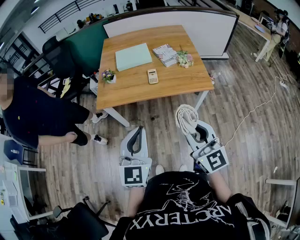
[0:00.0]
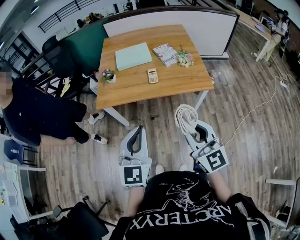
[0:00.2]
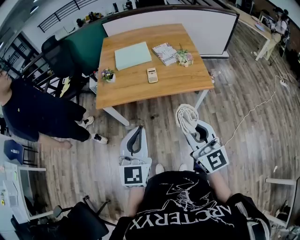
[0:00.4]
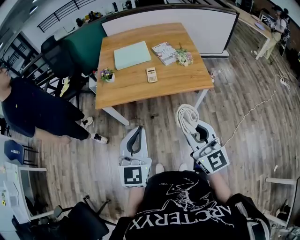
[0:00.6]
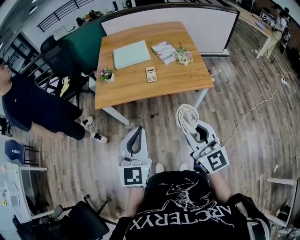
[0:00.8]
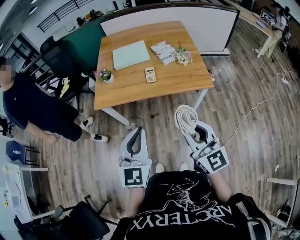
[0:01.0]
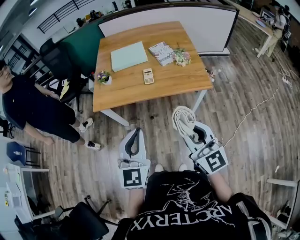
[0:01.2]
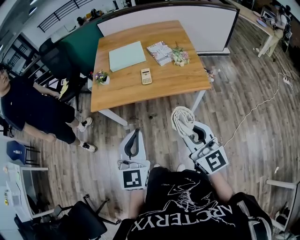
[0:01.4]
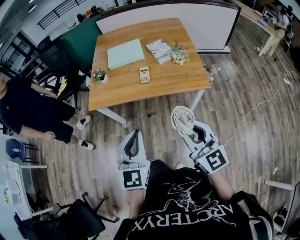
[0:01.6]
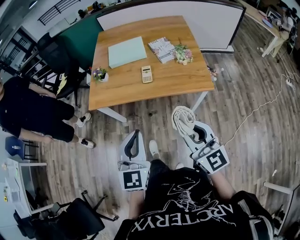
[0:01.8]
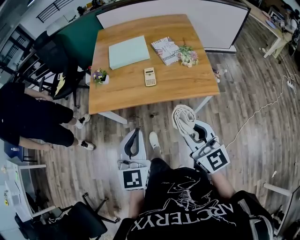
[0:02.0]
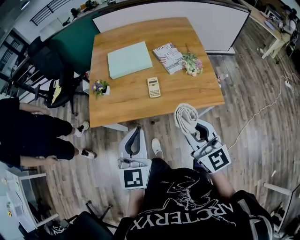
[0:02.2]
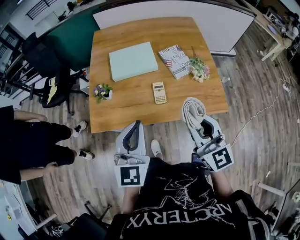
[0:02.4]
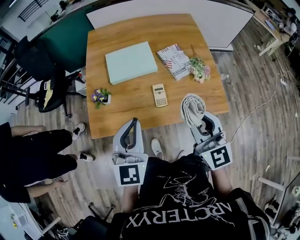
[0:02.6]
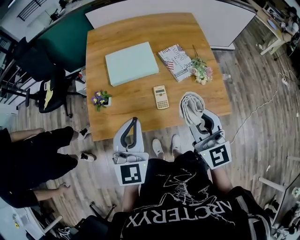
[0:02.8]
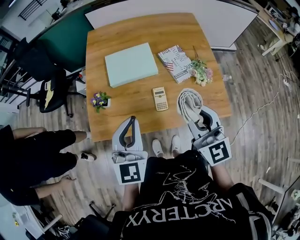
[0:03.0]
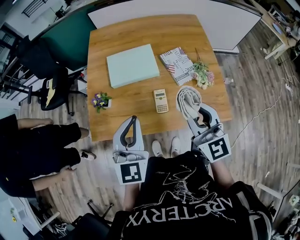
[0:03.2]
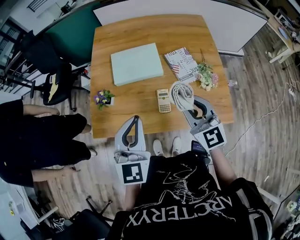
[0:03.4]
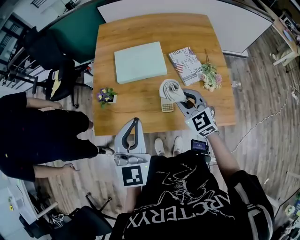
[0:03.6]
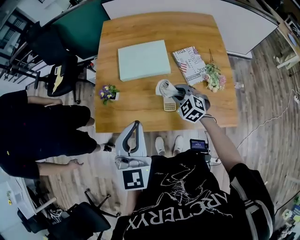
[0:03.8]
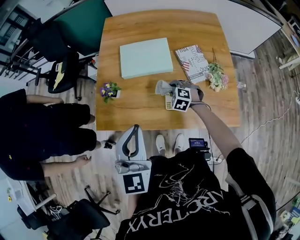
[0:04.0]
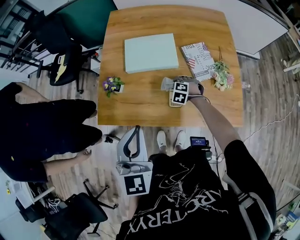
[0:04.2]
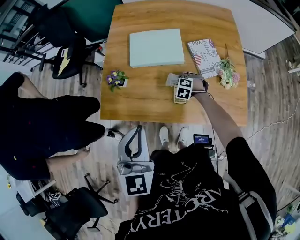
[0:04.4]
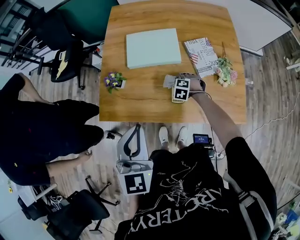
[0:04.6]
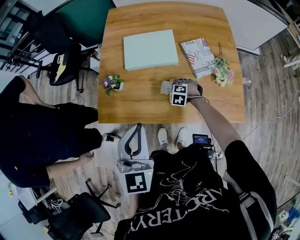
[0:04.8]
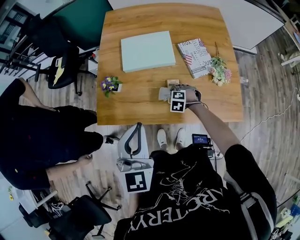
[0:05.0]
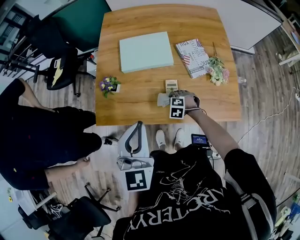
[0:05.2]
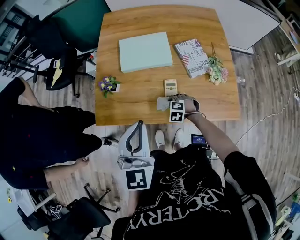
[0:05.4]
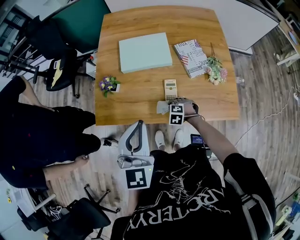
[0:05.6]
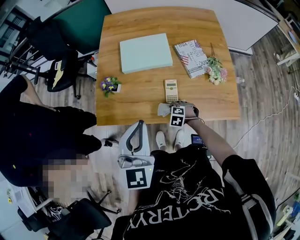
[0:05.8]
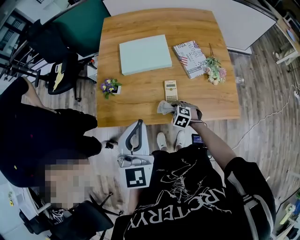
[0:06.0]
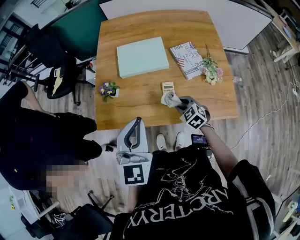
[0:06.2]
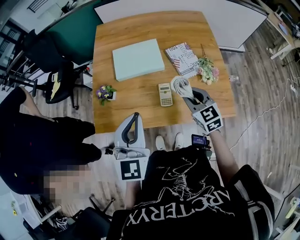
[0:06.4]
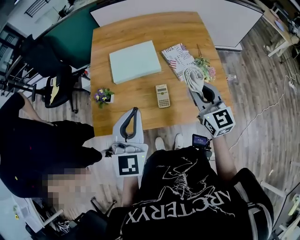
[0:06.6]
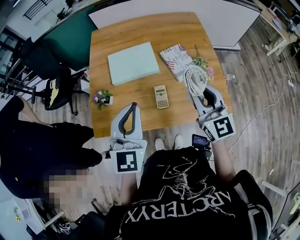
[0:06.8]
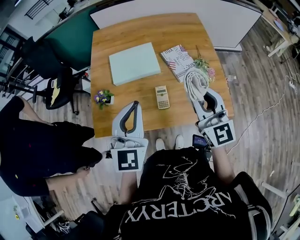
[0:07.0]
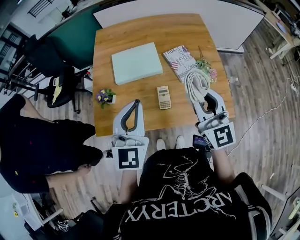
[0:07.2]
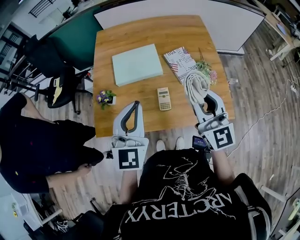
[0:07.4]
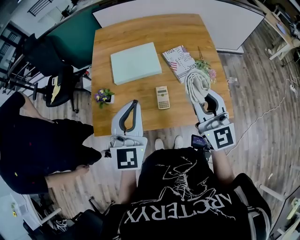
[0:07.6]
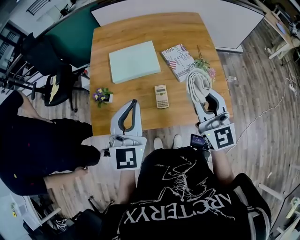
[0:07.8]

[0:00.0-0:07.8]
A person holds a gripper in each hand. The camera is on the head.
0:00.0 to 0:01.6: The grippers both shift to the right by some 5 cm.
0:01.6 to 0:03.2: The grippers both shift forward by roughly 40 cm.
0:03.2 to 0:04.6: The right gripper goes approximately 40 cm downward and forward, and tilts its fingers some 70 degrees downward, while the left gripper changes place by about 5 cm.
0:04.6 to 0:06.2: The right gripper shifts about 20 cm backward and upward, and changes its angle by roughly 40 degrees.
0:06.2 to 0:07.8: The left gripper heads forward, covering about 5 cm; the right gripper moves upward, roughly 30 cm, and tips its fingers upward by about 50 degrees.

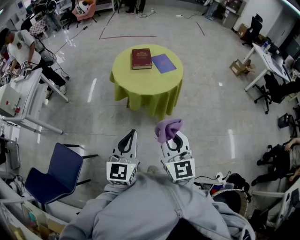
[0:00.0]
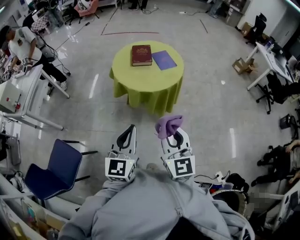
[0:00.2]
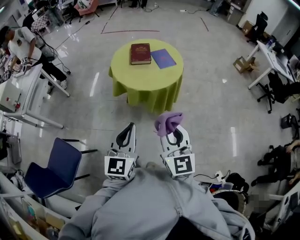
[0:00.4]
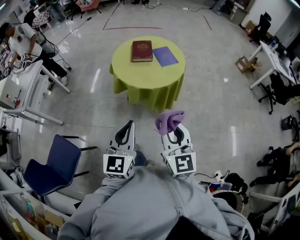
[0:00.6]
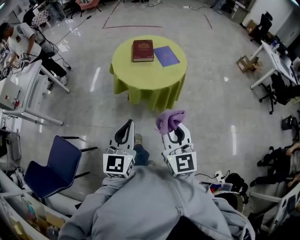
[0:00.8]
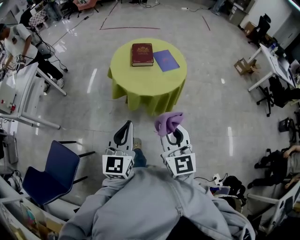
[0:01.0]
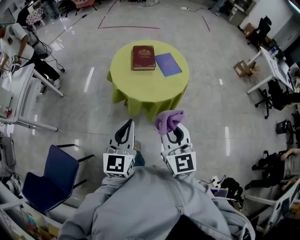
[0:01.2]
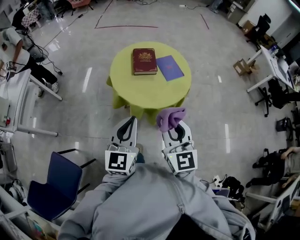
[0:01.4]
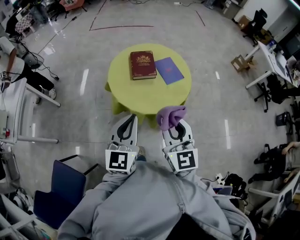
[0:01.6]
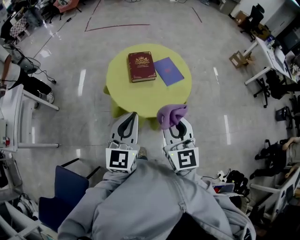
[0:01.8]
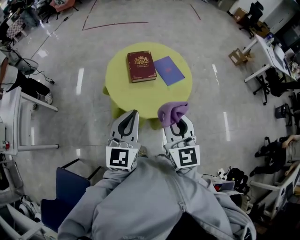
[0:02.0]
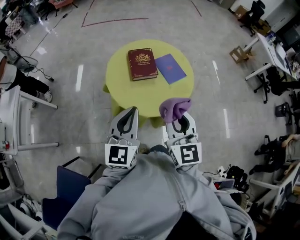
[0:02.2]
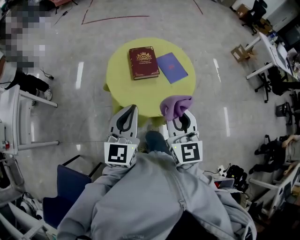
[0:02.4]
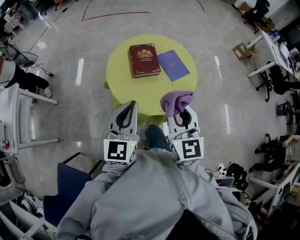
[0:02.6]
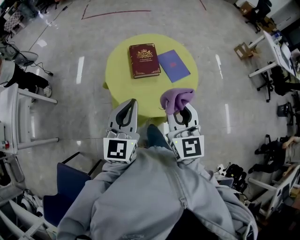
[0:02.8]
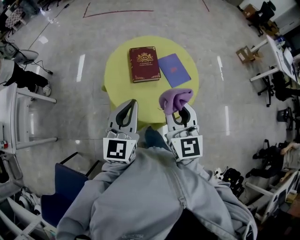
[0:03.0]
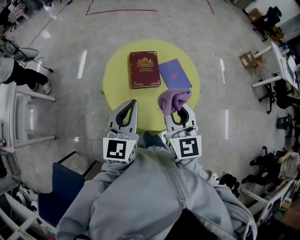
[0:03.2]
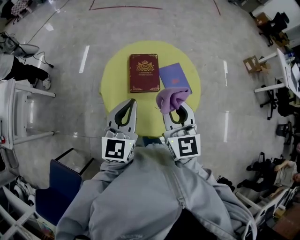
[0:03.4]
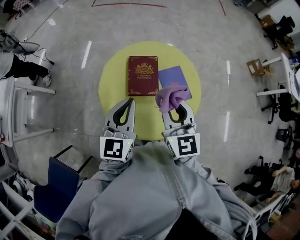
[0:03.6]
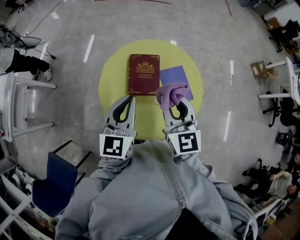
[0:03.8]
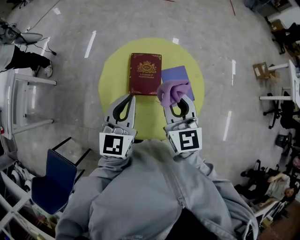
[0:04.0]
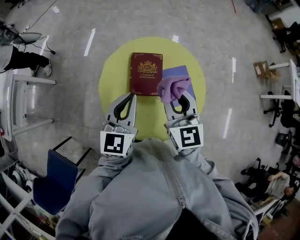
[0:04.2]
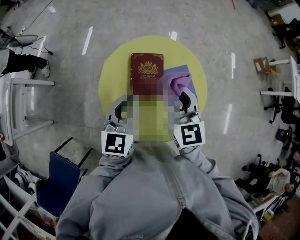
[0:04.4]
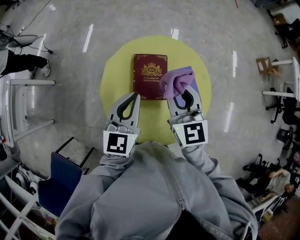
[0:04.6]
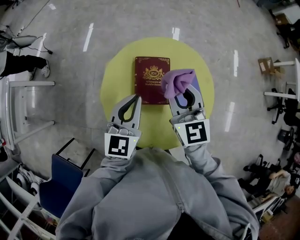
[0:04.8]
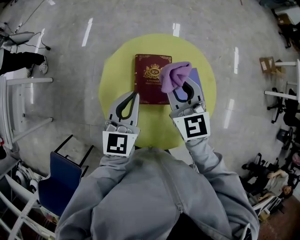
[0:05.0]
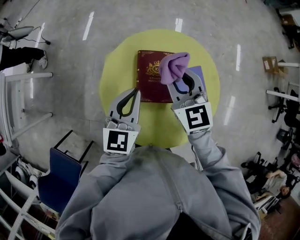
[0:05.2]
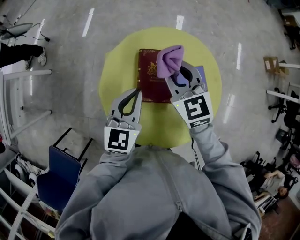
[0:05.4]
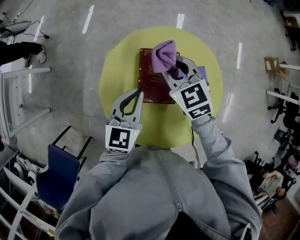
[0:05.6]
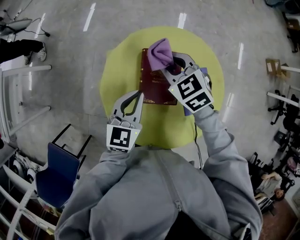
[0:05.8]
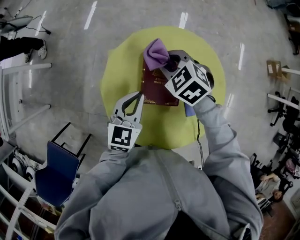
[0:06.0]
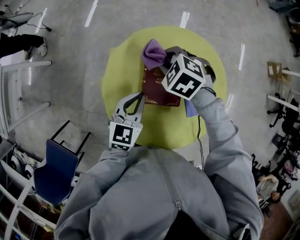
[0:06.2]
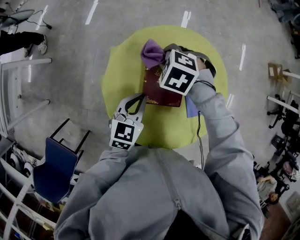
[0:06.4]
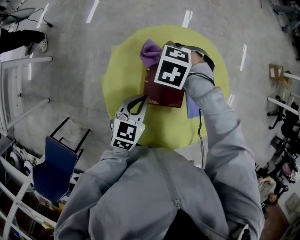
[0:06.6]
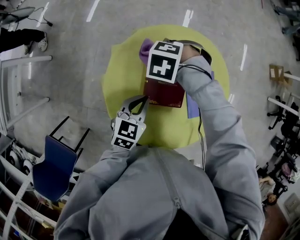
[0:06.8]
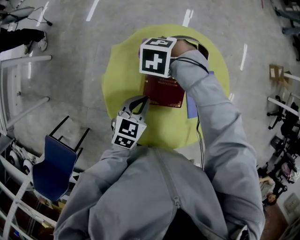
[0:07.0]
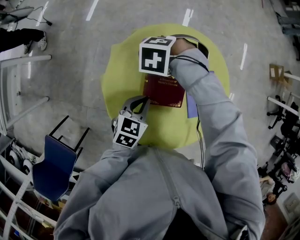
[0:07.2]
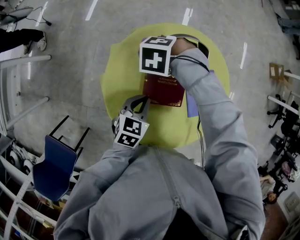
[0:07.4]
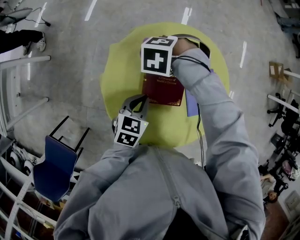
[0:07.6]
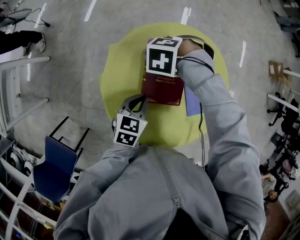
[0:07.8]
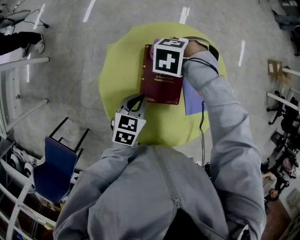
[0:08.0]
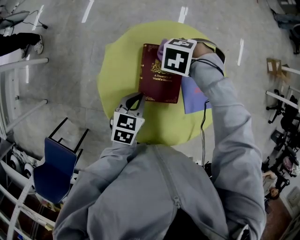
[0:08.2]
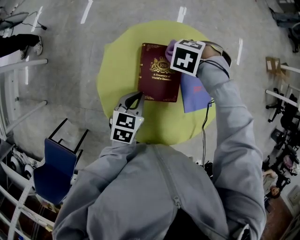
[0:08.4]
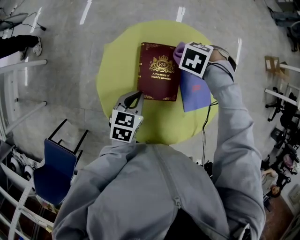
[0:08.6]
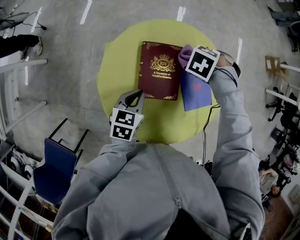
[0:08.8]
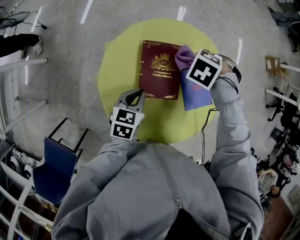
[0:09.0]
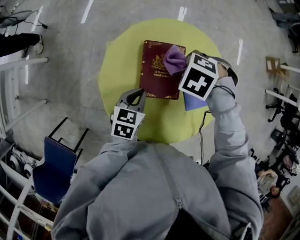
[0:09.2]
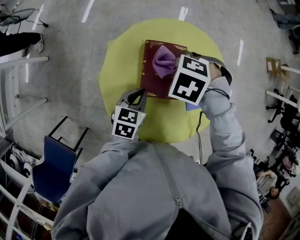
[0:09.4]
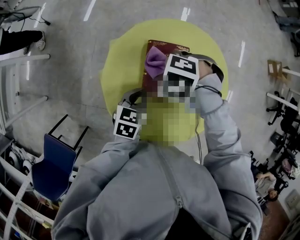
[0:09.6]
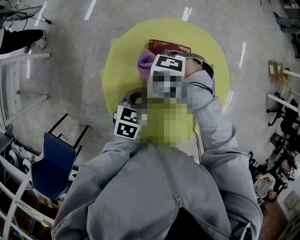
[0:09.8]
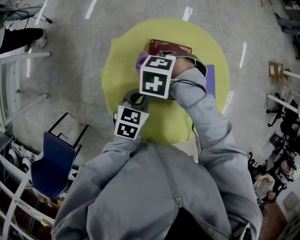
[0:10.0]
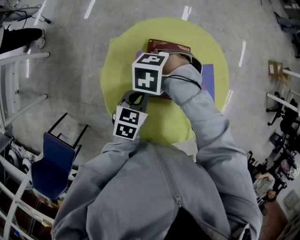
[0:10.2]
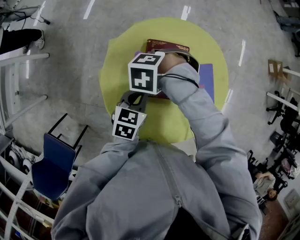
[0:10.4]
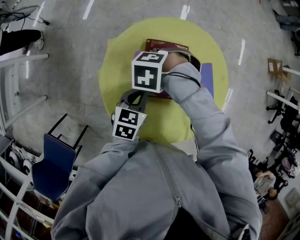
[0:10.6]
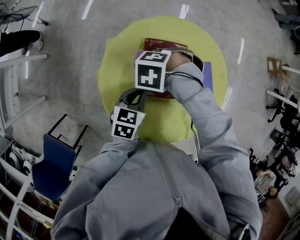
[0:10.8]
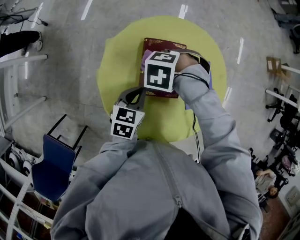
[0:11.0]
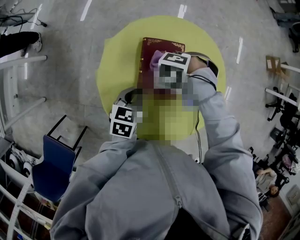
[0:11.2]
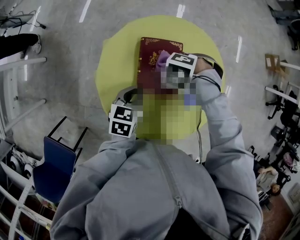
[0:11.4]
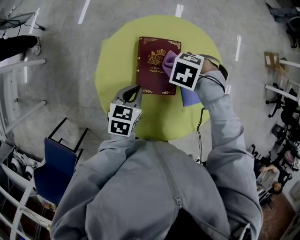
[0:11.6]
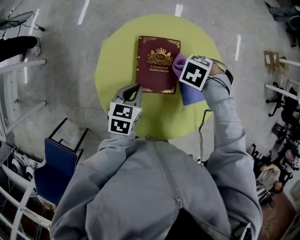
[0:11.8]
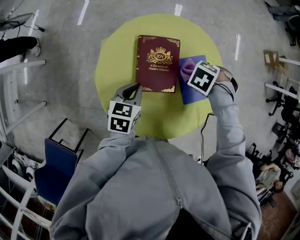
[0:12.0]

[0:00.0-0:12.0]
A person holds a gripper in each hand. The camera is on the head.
0:00.0 to 0:01.6: Both grippers move forward, approximately 30 cm.
0:01.6 to 0:03.0: The grippers both shift forward by roughly 20 cm.
0:03.0 to 0:04.4: Both grippers move forward, roughly 25 cm.
0:04.4 to 0:06.0: The left gripper shifts roughly 20 cm downward and forward; the right gripper shifts some 25 cm downward, forward and to the left, and tips its fingers downward by roughly 40 degrees.
0:06.0 to 0:07.6: Both grippers move downward, some 5 cm. The left gripper turns by about 20 degrees, while the right gripper tips its fingers downward by roughly 30 degrees.
0:07.6 to 0:09.0: The right gripper ends up about 15 cm from where it was.
0:09.0 to 0:10.4: The right gripper changes place by approximately 15 cm.
0:10.4 to 0:12.0: The right gripper ends up roughly 20 cm from where it was, and swivels some 30 degrees.

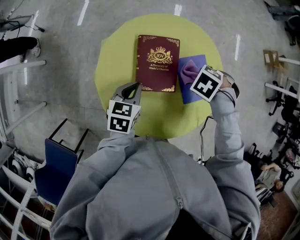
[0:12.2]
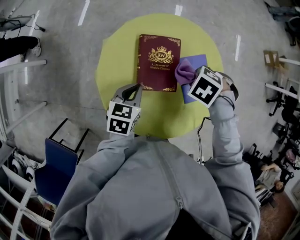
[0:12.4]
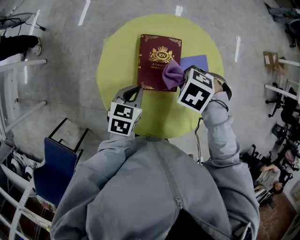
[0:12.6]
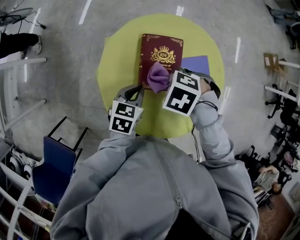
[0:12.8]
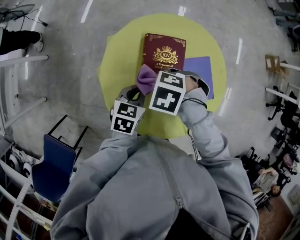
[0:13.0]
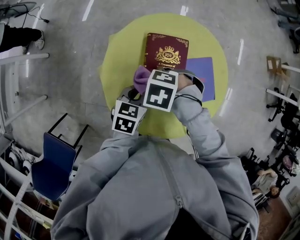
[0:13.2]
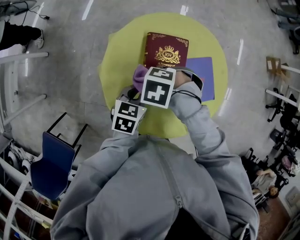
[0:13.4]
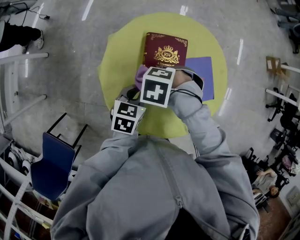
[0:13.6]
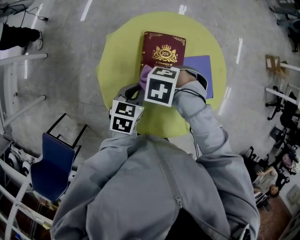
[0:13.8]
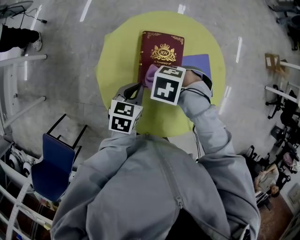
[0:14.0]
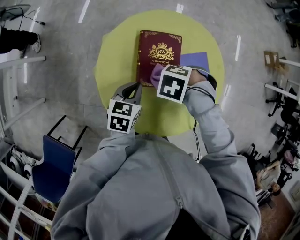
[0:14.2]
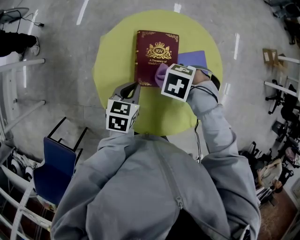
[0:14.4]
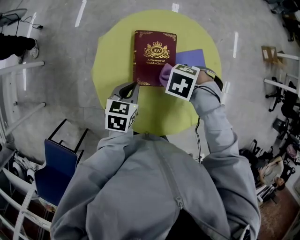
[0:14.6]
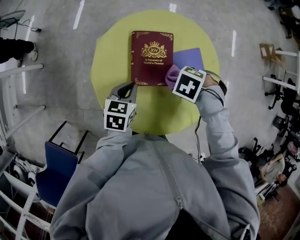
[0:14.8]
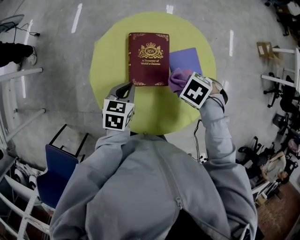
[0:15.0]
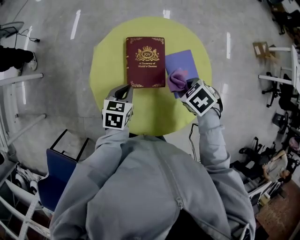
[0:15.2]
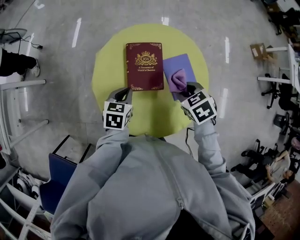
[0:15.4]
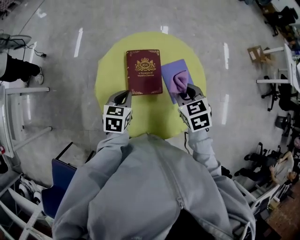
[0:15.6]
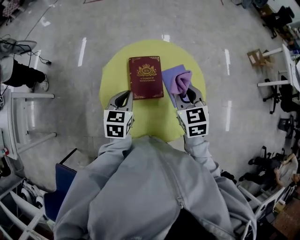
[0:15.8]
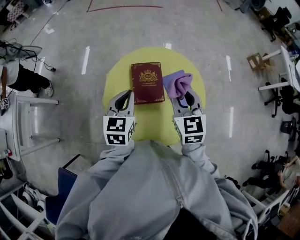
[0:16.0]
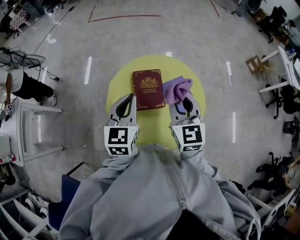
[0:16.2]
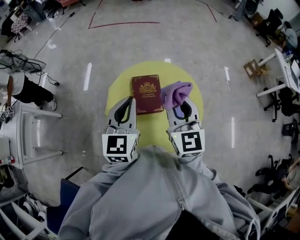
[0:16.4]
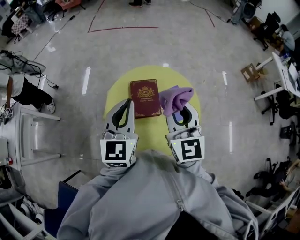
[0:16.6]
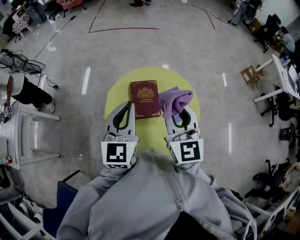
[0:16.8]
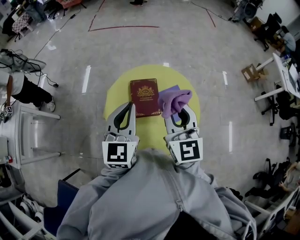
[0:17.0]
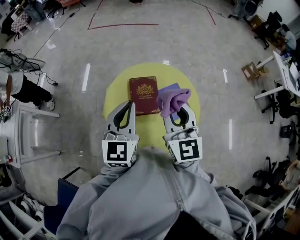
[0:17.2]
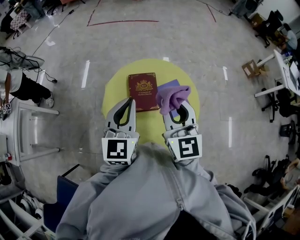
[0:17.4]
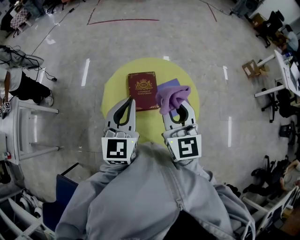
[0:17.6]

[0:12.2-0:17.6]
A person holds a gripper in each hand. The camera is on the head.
0:12.2 to 0:13.6: The right gripper moves about 20 cm, and turns by about 20 degrees.
0:13.6 to 0:15.0: The right gripper changes place by roughly 15 cm, and changes its angle by some 30 degrees.
0:15.0 to 0:16.2: Both grippers travel together upward, about 30 cm. The right gripper points its fingers about 70 degrees further upward. Meanwhile the left gripper changes its angle by about 40 degrees.
0:16.2 to 0:17.6: The two grippers go approximately 5 cm upward.
